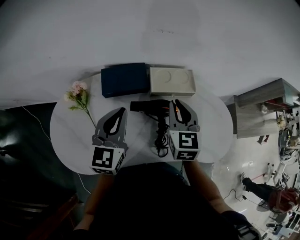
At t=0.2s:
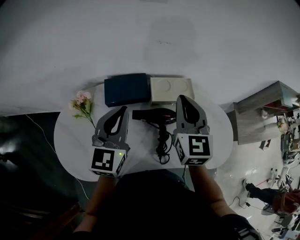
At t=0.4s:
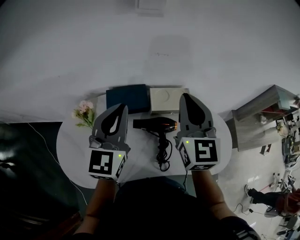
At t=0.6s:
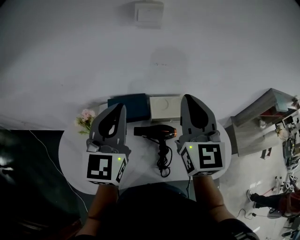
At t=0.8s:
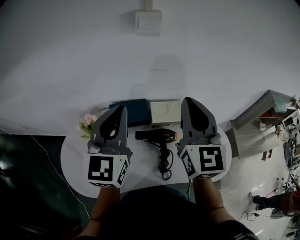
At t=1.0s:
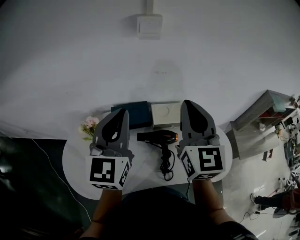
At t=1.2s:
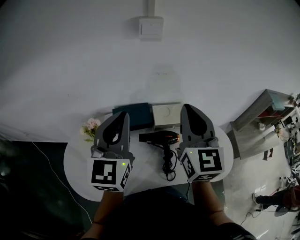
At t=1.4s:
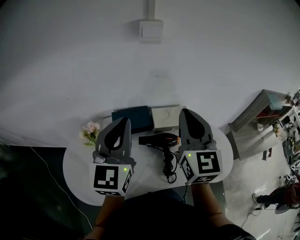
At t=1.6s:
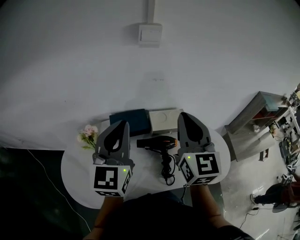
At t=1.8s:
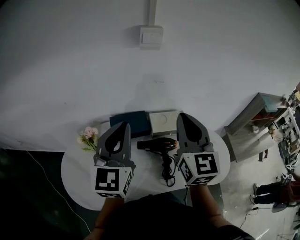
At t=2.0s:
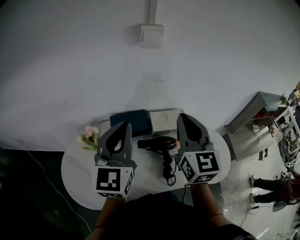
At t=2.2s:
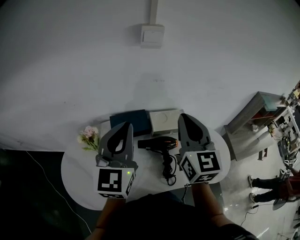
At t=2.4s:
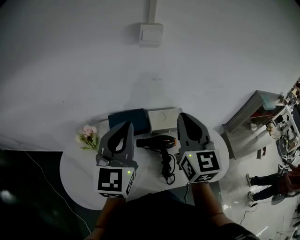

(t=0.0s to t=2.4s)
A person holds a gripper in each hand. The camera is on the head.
t=0.0s - t=1.2s: The two grippers go about 20 cm upward. The right gripper rotates roughly 30 degrees.
t=1.2s - t=2.4s: The grippers move only a little.

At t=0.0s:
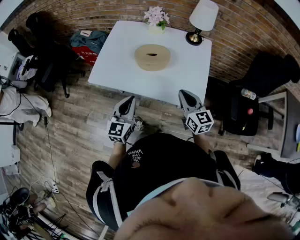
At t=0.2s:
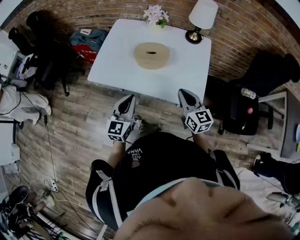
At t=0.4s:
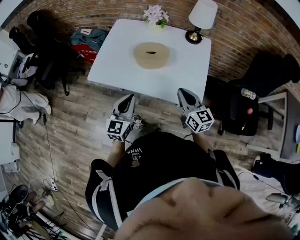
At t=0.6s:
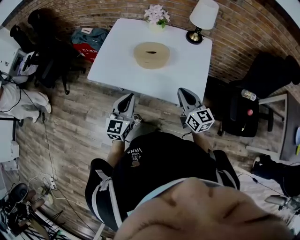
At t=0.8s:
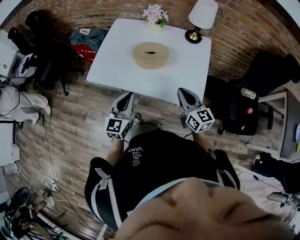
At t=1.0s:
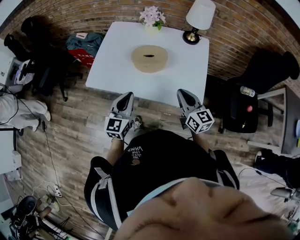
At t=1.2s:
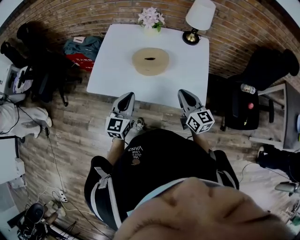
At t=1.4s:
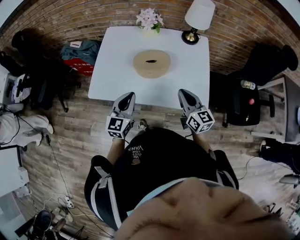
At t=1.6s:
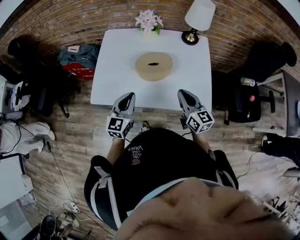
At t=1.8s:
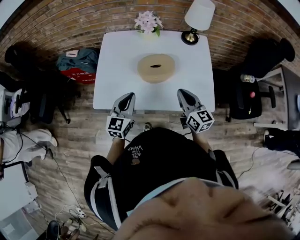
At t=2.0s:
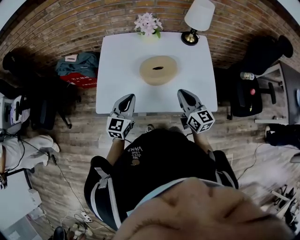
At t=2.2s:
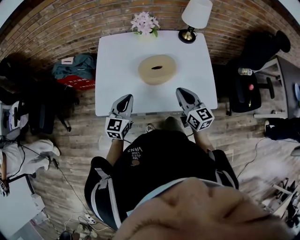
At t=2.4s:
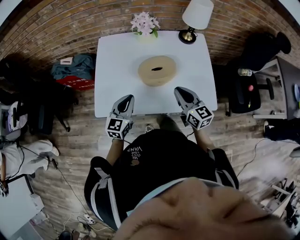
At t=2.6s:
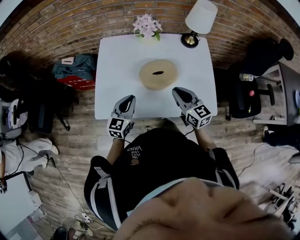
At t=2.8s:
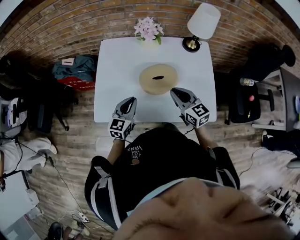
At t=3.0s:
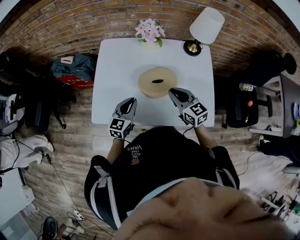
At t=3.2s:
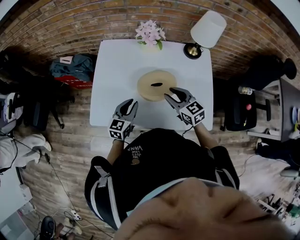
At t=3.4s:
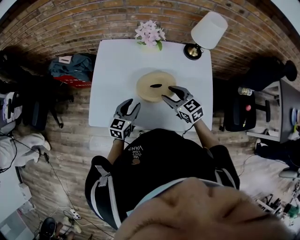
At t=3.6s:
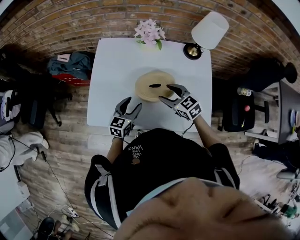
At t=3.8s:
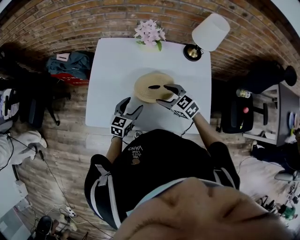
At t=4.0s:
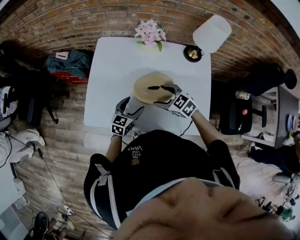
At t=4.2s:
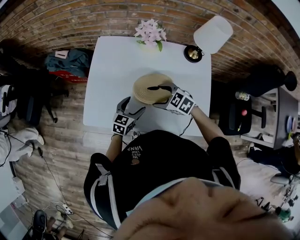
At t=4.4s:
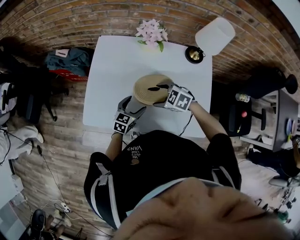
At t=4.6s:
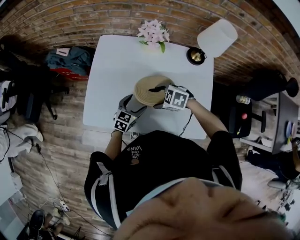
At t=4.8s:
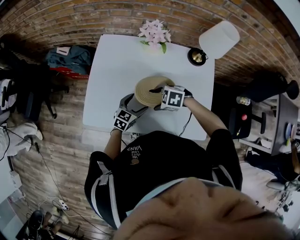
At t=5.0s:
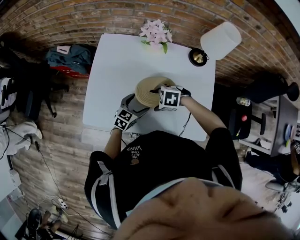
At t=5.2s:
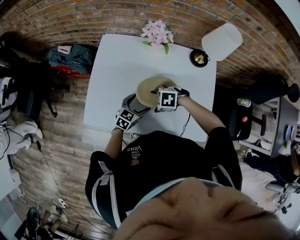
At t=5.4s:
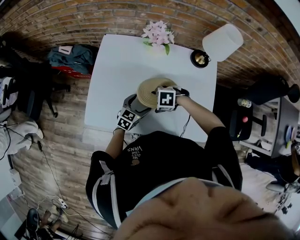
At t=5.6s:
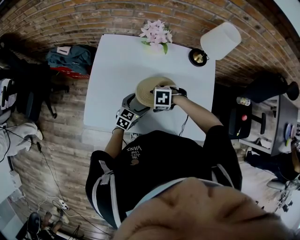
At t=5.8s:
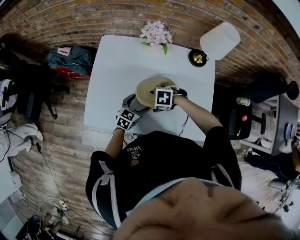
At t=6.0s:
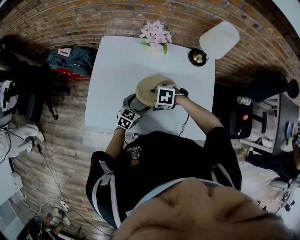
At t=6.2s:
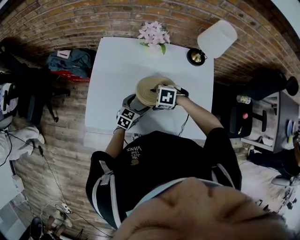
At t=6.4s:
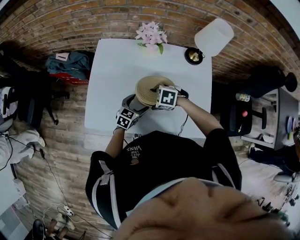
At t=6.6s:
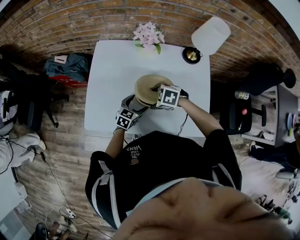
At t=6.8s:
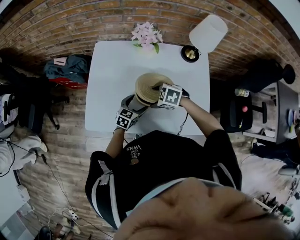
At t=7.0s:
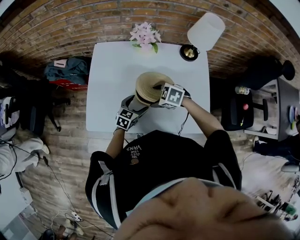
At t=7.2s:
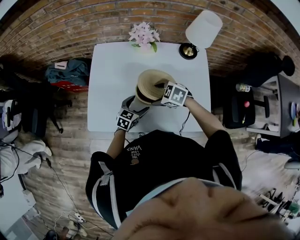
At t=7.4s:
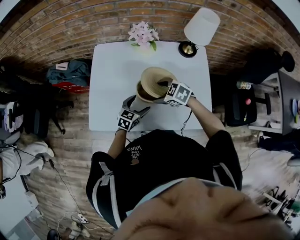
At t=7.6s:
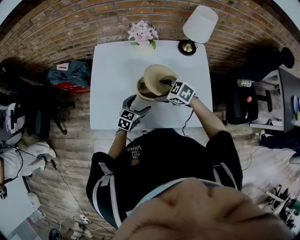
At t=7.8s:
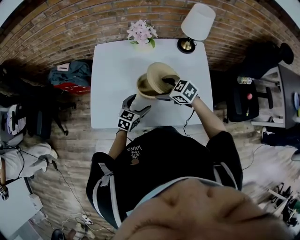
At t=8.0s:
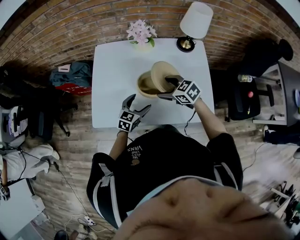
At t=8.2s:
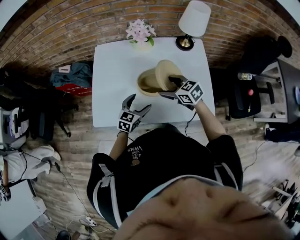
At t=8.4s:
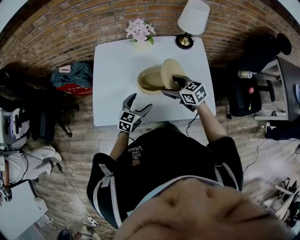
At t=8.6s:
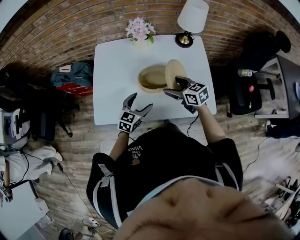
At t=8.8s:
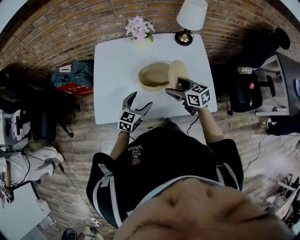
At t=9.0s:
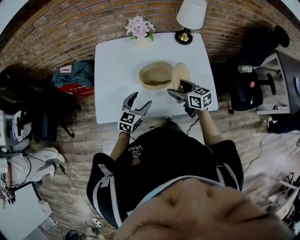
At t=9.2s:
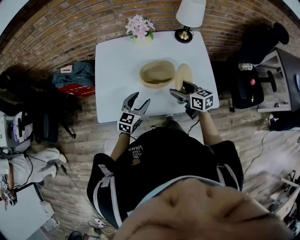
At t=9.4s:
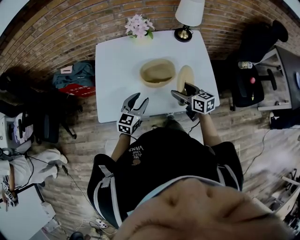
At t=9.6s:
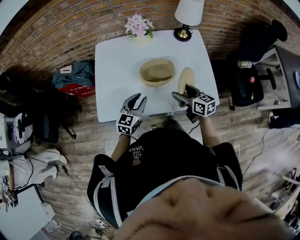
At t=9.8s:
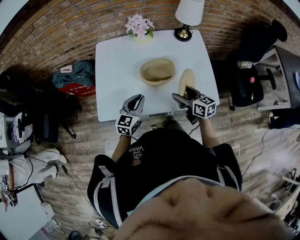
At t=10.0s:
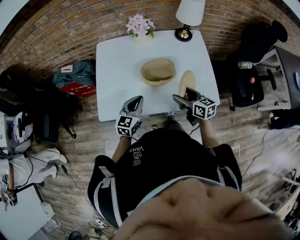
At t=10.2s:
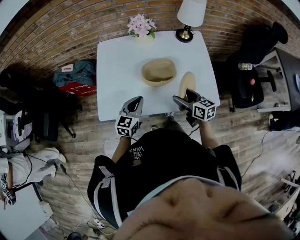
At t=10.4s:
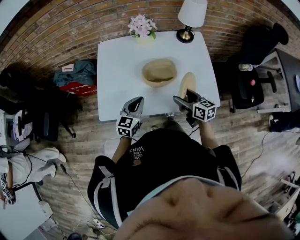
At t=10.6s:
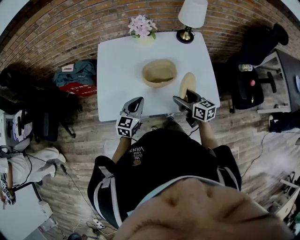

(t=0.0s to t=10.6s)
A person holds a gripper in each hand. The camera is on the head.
t=0.0s - t=1.6s: The right gripper goes some 10 cm forward and to the left; the left gripper is displaced forward and to the left by roughly 15 cm.
t=1.6s - t=3.0s: The left gripper shifts approximately 15 cm forward and downward; the right gripper is displaced forward and to the left by roughly 15 cm.
t=3.0s - t=4.6s: Both grippers travel together downward, some 10 cm. The left gripper opens; the right gripper angles its fingers downward, by approximately 40 degrees, and opens.
t=6.0s - t=7.6s: The right gripper shifts roughly 10 cm upward, and changes its angle by approximately 40 degrees.
t=7.6s - t=9.0s: The left gripper shifts roughly 10 cm upward and backward, while the right gripper goes some 10 cm backward and to the right, and swivels some 50 degrees.
t=9.0s - t=10.6s: The left gripper closes. The right gripper shifts some 5 cm backward.
